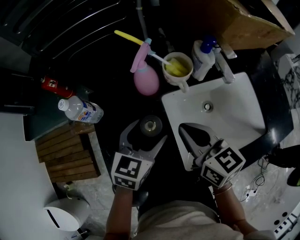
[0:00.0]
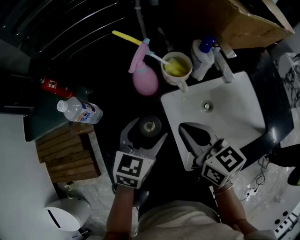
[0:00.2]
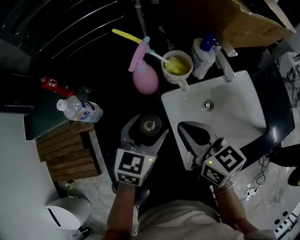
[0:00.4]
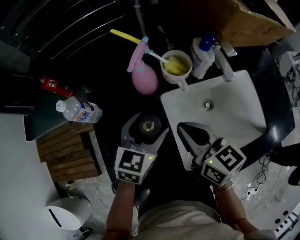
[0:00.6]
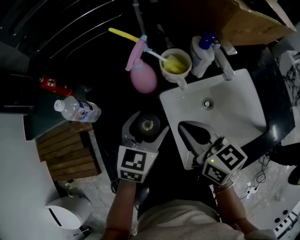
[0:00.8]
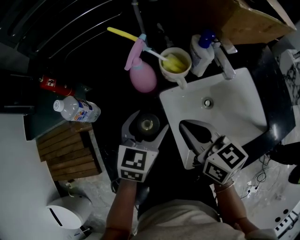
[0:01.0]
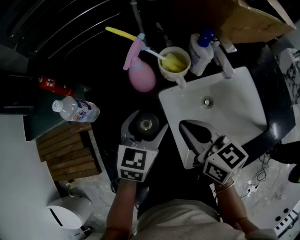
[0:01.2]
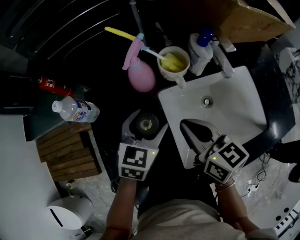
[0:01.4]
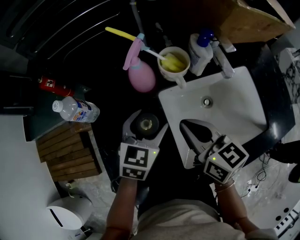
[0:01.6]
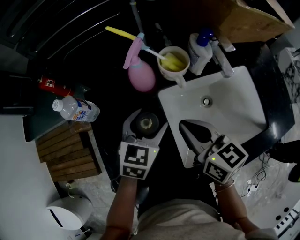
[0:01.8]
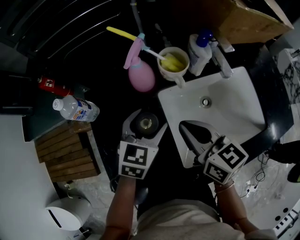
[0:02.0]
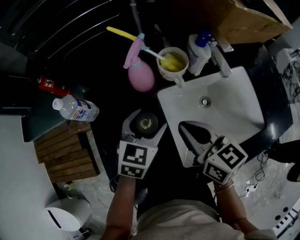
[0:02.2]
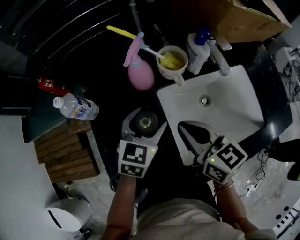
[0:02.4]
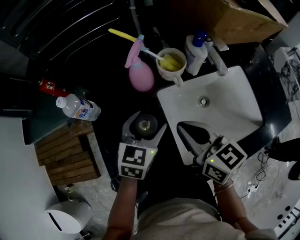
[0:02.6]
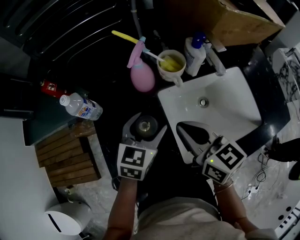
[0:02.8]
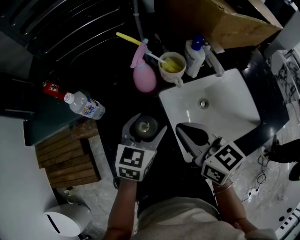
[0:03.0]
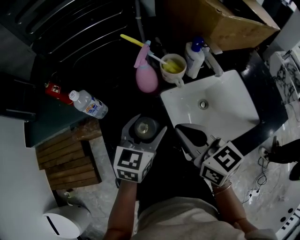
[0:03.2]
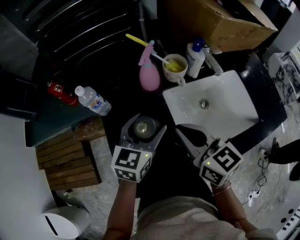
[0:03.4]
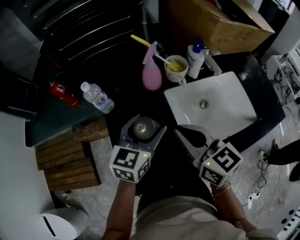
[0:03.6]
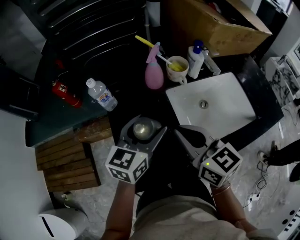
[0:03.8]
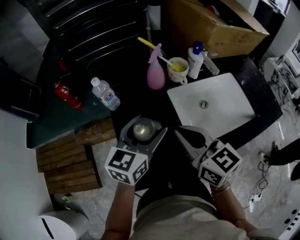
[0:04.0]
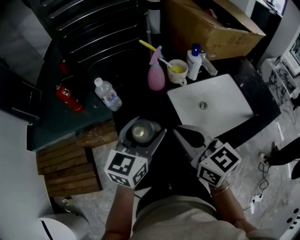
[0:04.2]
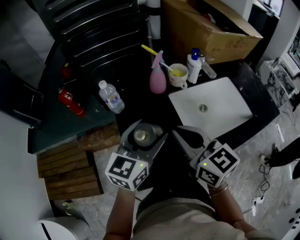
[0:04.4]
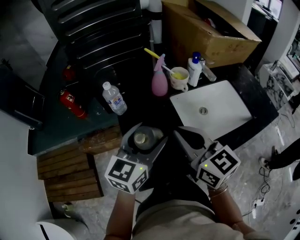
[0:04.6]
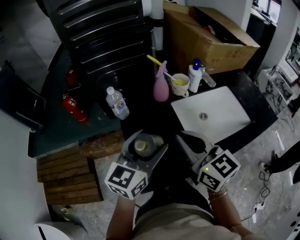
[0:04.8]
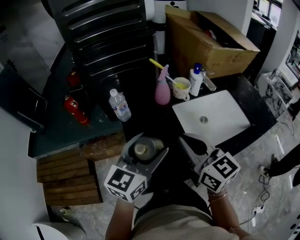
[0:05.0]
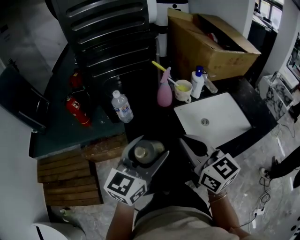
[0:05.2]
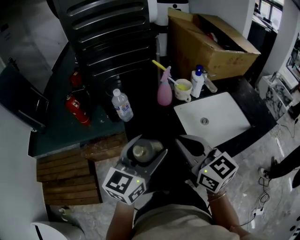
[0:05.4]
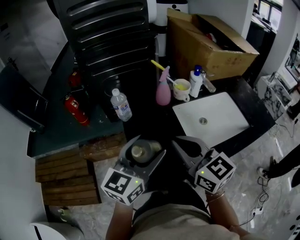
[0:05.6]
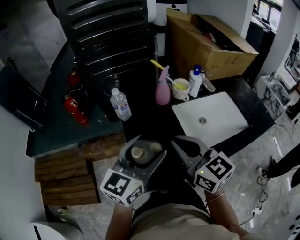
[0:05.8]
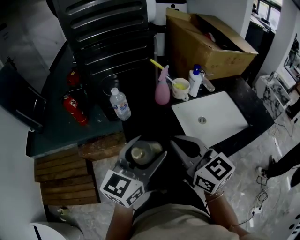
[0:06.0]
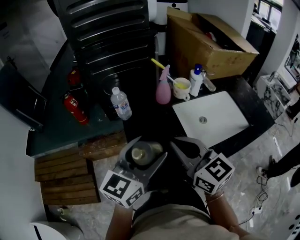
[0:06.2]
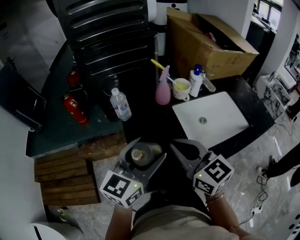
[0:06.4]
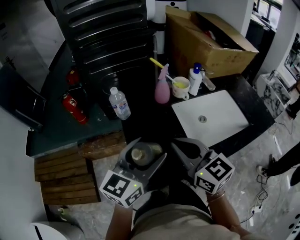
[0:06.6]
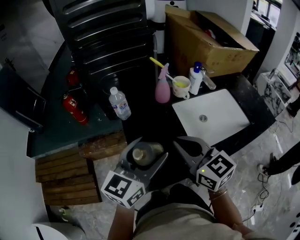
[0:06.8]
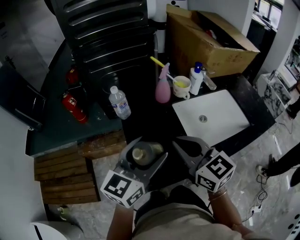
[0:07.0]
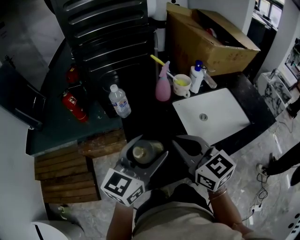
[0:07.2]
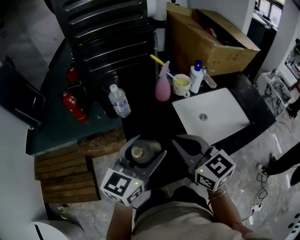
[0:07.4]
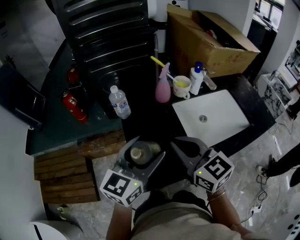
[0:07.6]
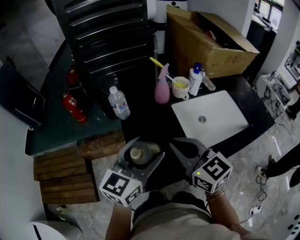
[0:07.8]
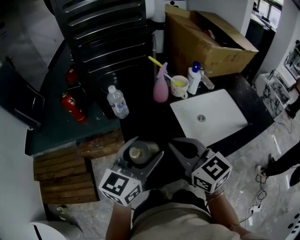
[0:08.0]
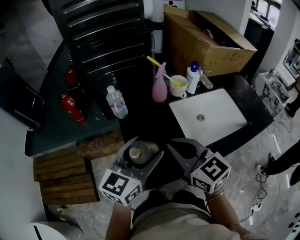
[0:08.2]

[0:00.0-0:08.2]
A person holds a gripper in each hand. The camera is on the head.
0.0 to 1.6 s: The grippers stay close to where they were, moving slightly.
1.6 to 3.2 s: The left gripper goes approximately 5 cm upward. The right gripper travels upward and backward by some 5 cm.
3.2 to 5.0 s: The grippers both shift backward, upward and to the left by some 20 cm. The left gripper turns by some 20 degrees.
5.0 to 6.6 s: There are only small adjustments of the grippers.
6.6 to 8.2 s: Neither gripper changes place.

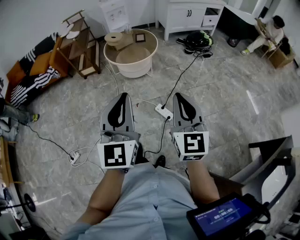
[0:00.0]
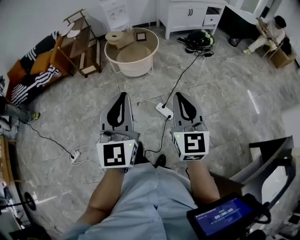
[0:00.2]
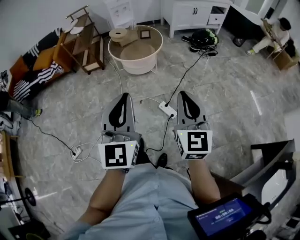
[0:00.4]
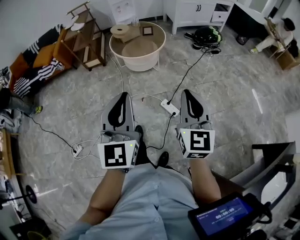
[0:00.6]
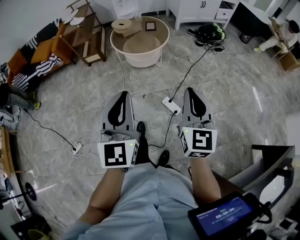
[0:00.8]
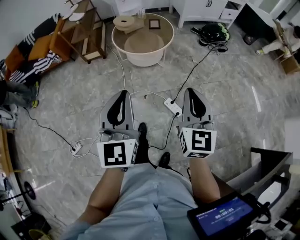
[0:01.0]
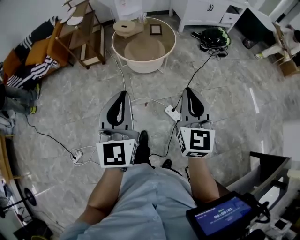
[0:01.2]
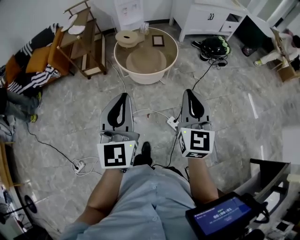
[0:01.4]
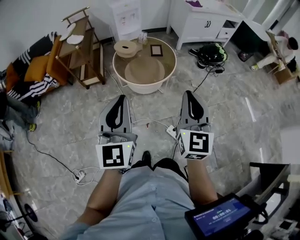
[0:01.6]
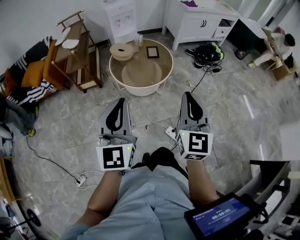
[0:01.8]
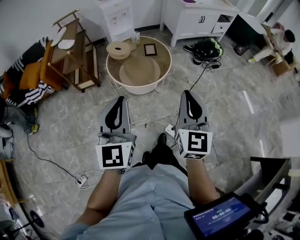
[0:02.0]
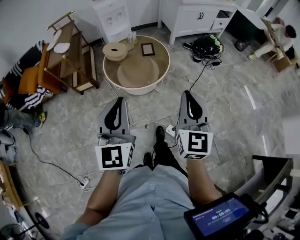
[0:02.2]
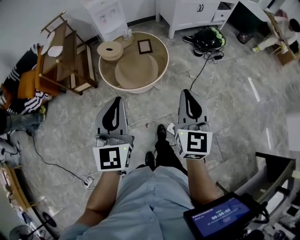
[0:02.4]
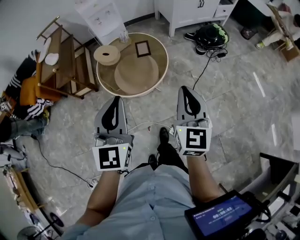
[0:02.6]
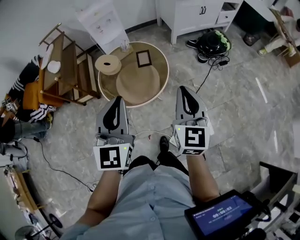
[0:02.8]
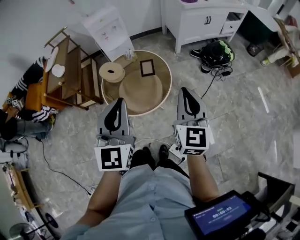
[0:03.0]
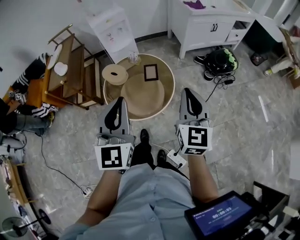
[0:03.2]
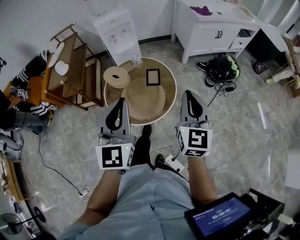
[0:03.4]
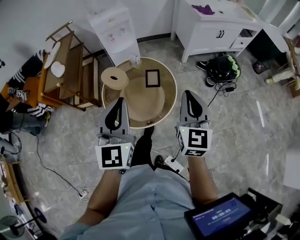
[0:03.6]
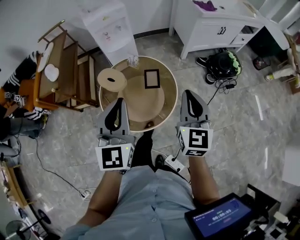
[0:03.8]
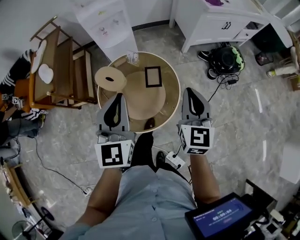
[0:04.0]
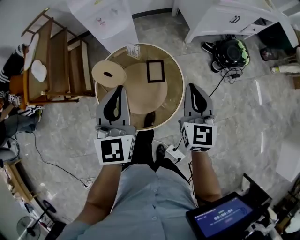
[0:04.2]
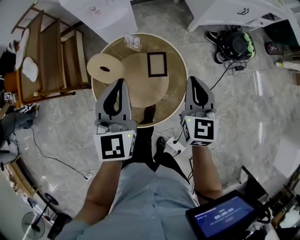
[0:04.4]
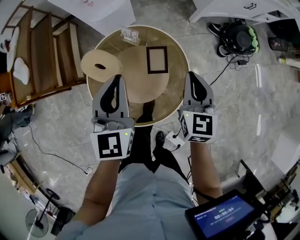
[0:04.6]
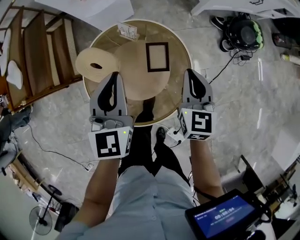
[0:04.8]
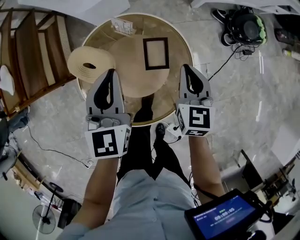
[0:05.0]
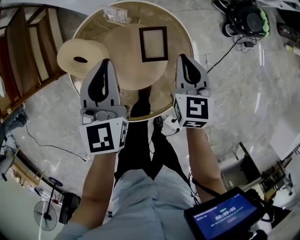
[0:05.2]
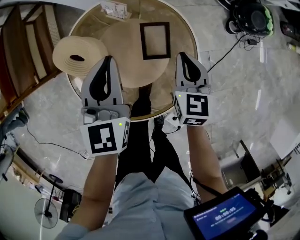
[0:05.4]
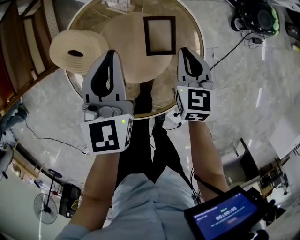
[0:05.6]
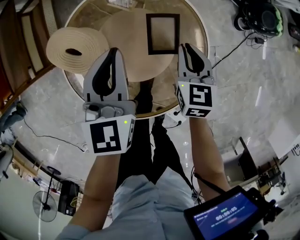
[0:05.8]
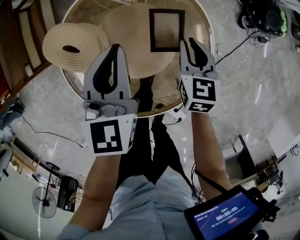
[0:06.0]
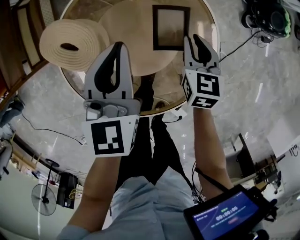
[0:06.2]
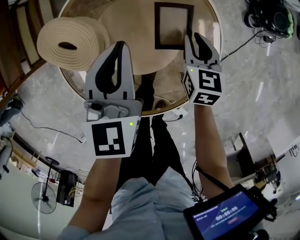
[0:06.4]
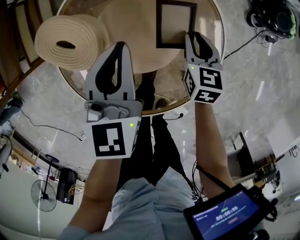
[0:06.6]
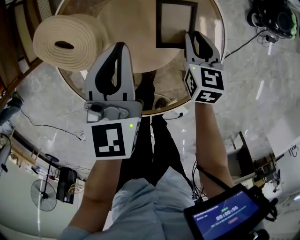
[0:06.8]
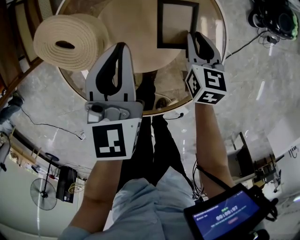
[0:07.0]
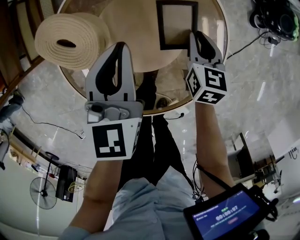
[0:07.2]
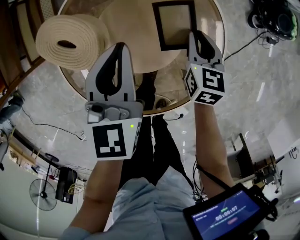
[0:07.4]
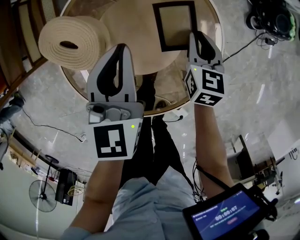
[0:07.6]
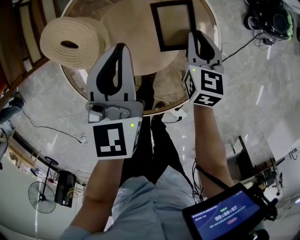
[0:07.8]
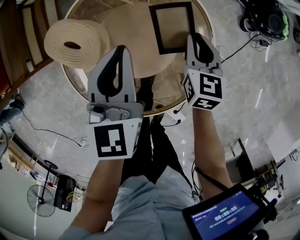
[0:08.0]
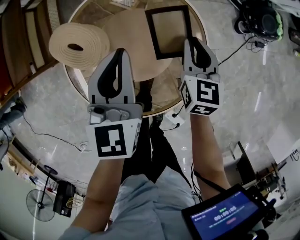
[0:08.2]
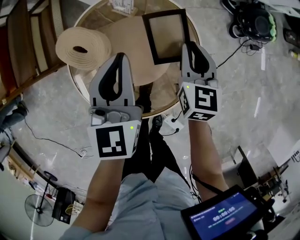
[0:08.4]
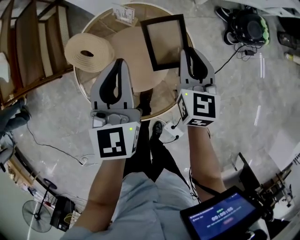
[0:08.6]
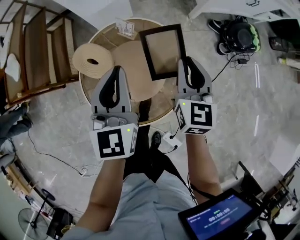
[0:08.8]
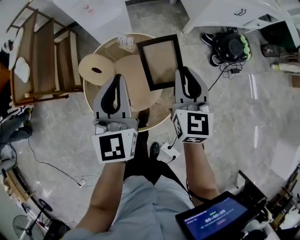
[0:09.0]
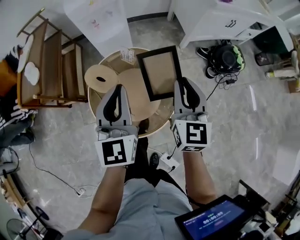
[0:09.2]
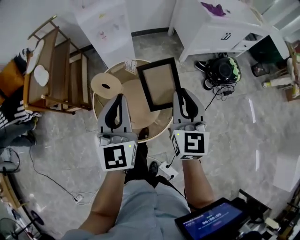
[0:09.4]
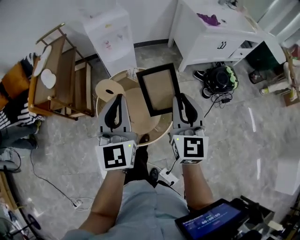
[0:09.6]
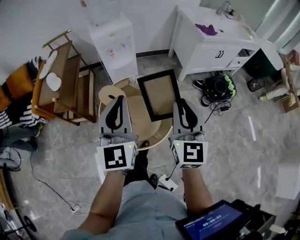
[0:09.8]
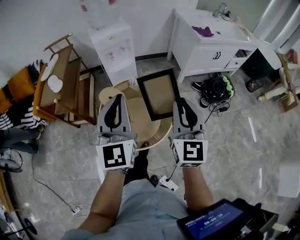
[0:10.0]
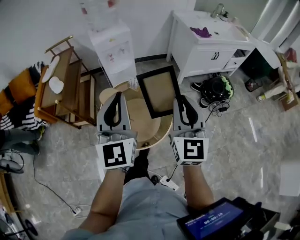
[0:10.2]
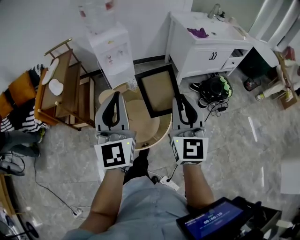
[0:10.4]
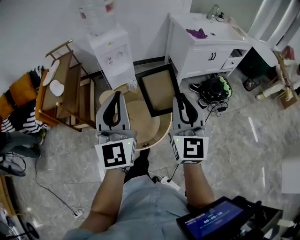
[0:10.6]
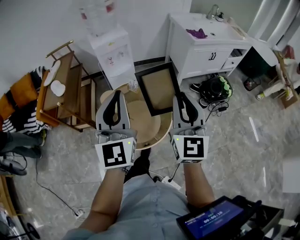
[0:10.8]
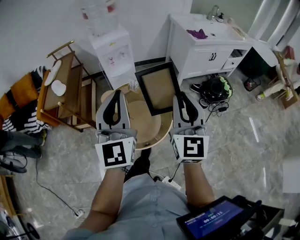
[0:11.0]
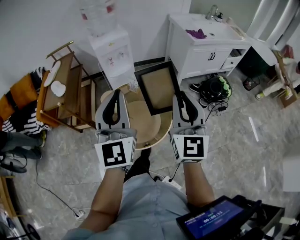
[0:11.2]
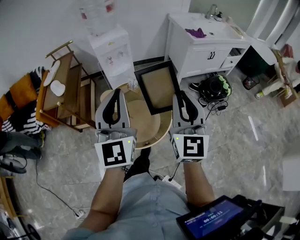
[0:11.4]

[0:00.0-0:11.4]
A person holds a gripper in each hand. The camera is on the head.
0.0 to 1.4 s: The two grippers go about 30 cm forward and to the left.
1.4 to 2.8 s: The two grippers go about 35 cm forward.
2.8 to 4.2 s: Both grippers travel together forward, about 35 cm.
4.2 to 5.6 s: The right gripper shifts about 35 cm downward, and turns by some 20 degrees. The left gripper heads downward and forward, covering about 30 cm.
5.6 to 7.2 s: The grippers both shift downward by about 10 cm.
7.2 to 8.6 s: Both grippers travel together upward, about 20 cm.
8.6 to 10.0 s: The grippers both shift upward and backward by some 40 cm. The right gripper turns by some 30 degrees, while the left gripper changes its angle by about 30 degrees.
10.0 to 11.4 s: The two grippers go about 5 cm upward.

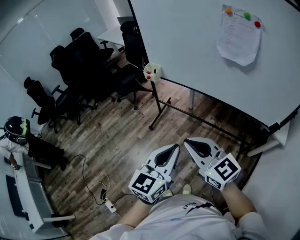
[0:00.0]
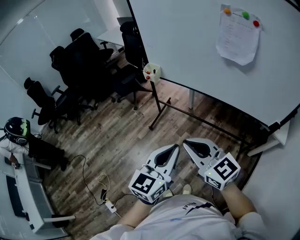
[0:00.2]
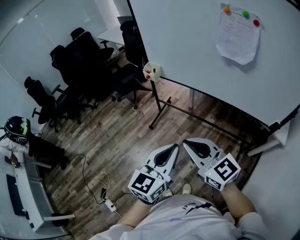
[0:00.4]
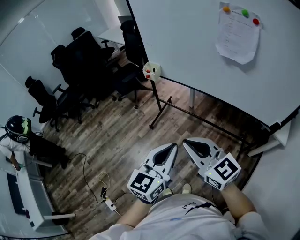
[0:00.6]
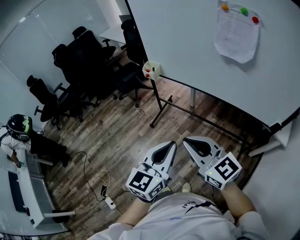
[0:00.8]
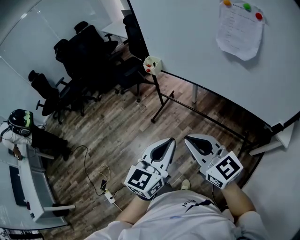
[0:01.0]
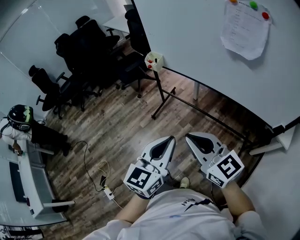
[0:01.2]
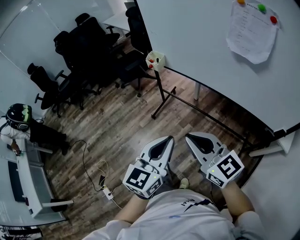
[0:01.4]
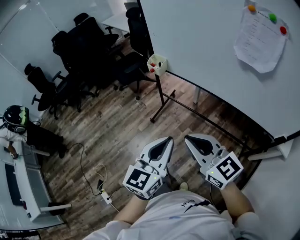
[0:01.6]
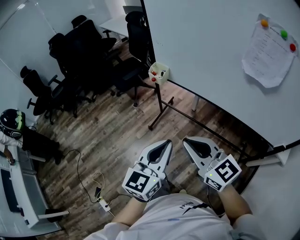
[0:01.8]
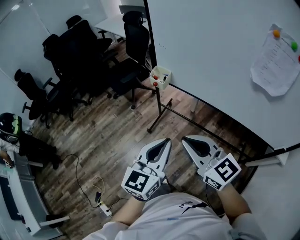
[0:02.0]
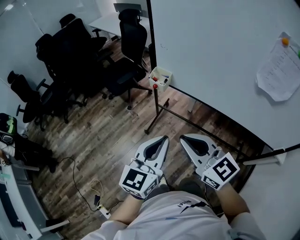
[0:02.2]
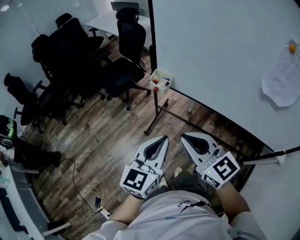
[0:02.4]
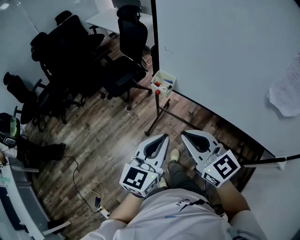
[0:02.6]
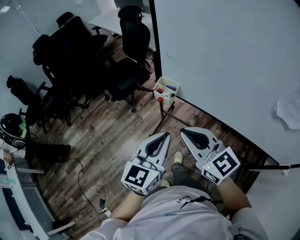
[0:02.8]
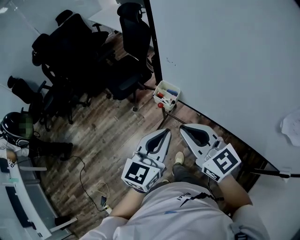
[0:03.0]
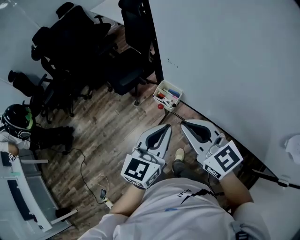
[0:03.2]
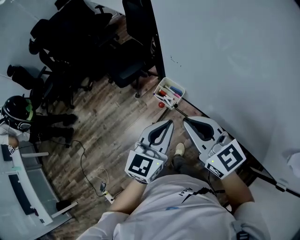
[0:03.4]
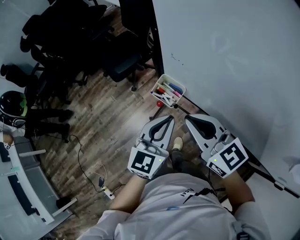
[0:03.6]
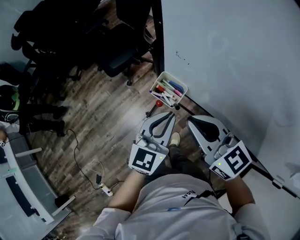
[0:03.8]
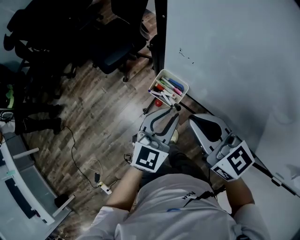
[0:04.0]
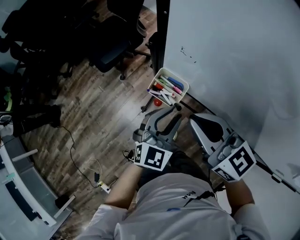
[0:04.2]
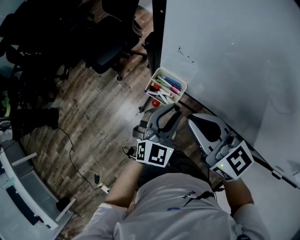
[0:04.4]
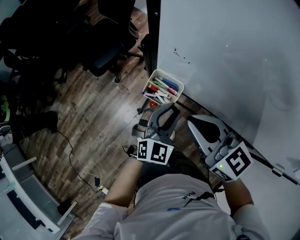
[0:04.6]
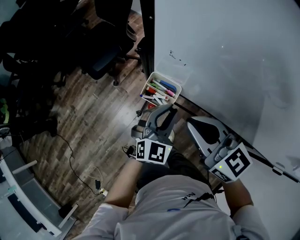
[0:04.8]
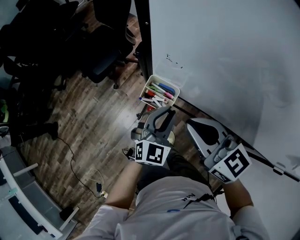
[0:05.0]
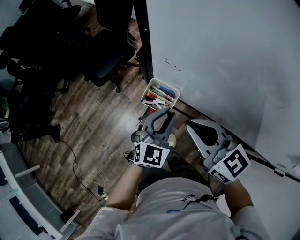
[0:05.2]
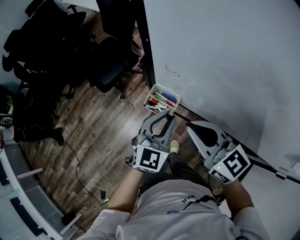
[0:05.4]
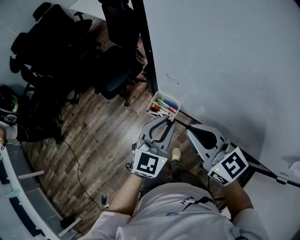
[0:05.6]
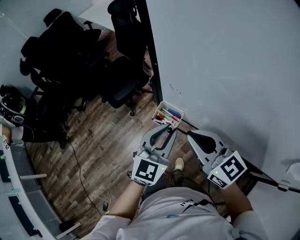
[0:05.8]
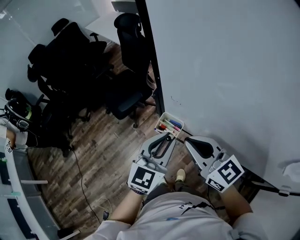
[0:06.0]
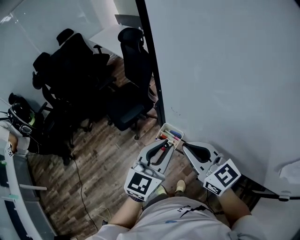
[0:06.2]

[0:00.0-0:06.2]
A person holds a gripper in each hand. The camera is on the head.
0.0 to 1.6 s: Both grippers move forward, roughly 10 cm.
1.6 to 3.2 s: The pair of grippers is taken forward, about 40 cm.
3.2 to 4.6 s: The right gripper moves forward and downward, about 15 cm. The left gripper travels downward and forward by some 20 cm, turns by roughly 40 degrees, and opens its fingers.
4.6 to 6.2 s: The left gripper heads upward, covering some 20 cm, and rotates roughly 20 degrees, while the right gripper shifts roughly 10 cm upward.
